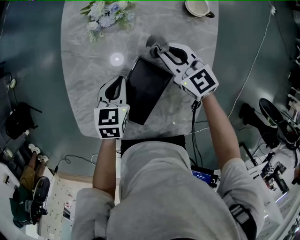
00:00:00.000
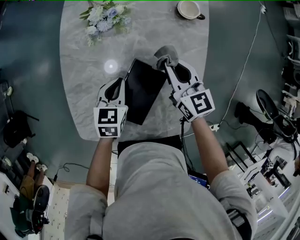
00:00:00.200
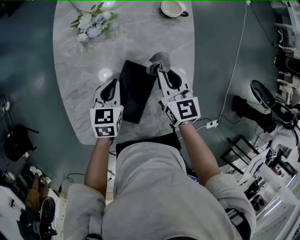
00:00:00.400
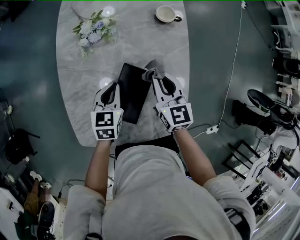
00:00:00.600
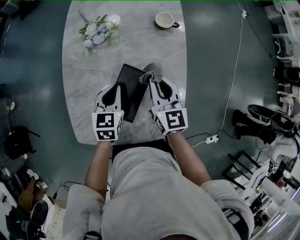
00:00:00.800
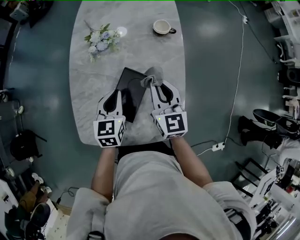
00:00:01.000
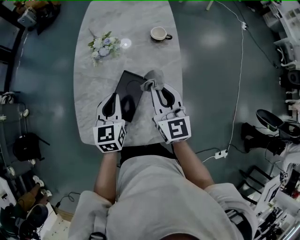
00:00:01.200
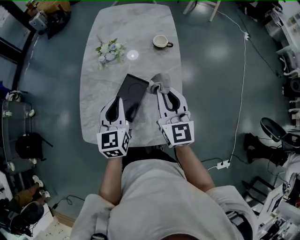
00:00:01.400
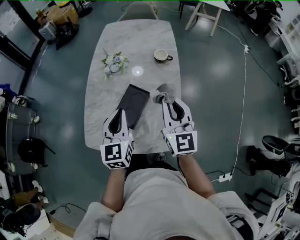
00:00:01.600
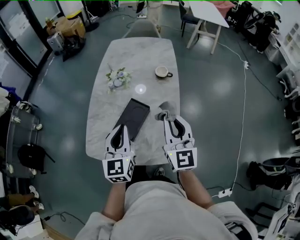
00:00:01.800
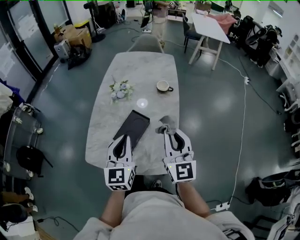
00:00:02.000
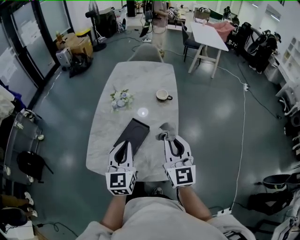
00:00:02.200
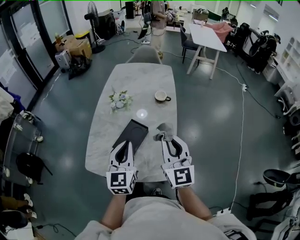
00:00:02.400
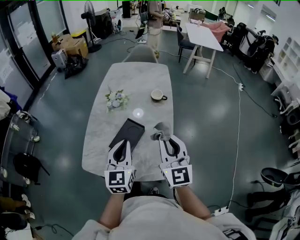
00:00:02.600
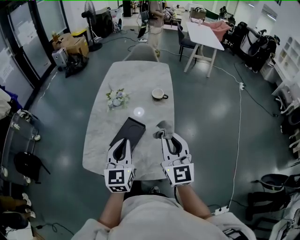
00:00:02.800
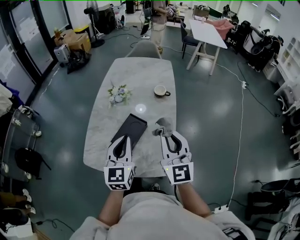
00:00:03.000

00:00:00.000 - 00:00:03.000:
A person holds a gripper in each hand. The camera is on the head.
00:00:00.000 - 00:00:01.600: The right gripper travels upward, backward and to the right by roughly 35 cm, and rotates some 40 degrees; the left gripper moves upward and backward, roughly 30 cm, and angles its fingers upward, by about 30 degrees.
00:00:01.600 - 00:00:03.000: The right gripper shifts roughly 5 cm backward, while the left gripper shifts by approximately 5 cm.

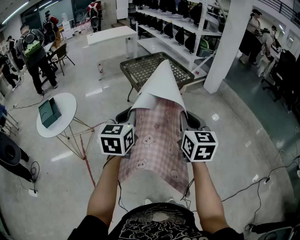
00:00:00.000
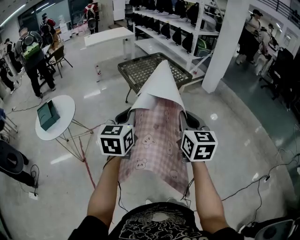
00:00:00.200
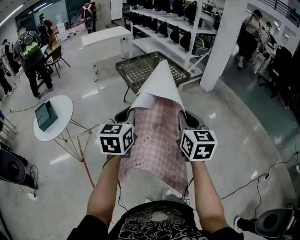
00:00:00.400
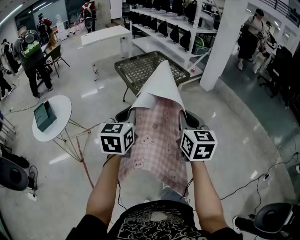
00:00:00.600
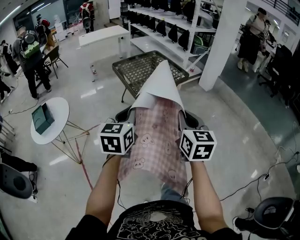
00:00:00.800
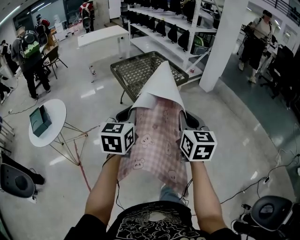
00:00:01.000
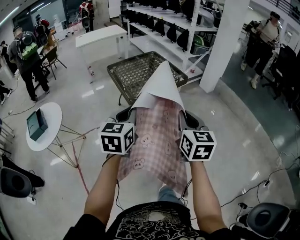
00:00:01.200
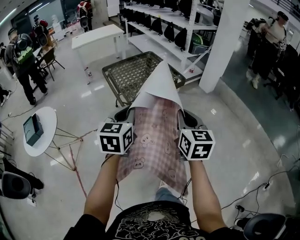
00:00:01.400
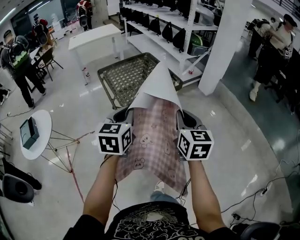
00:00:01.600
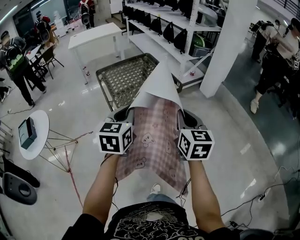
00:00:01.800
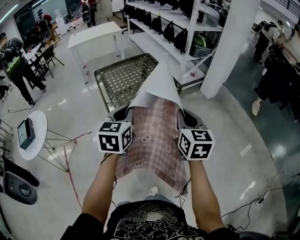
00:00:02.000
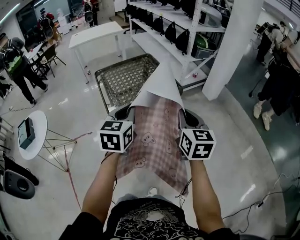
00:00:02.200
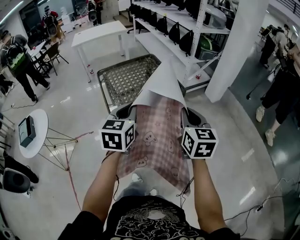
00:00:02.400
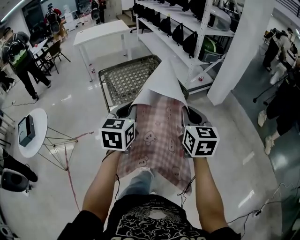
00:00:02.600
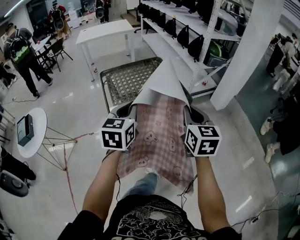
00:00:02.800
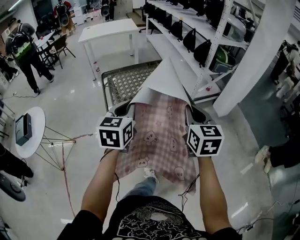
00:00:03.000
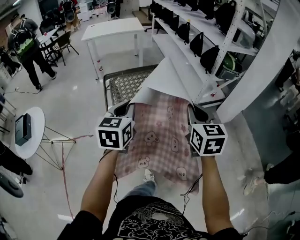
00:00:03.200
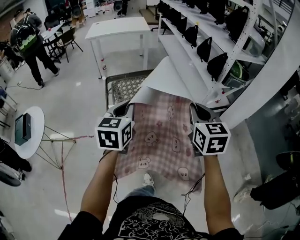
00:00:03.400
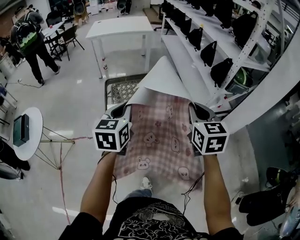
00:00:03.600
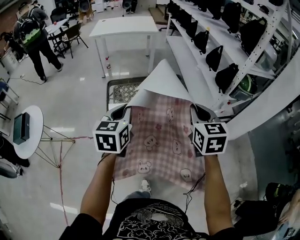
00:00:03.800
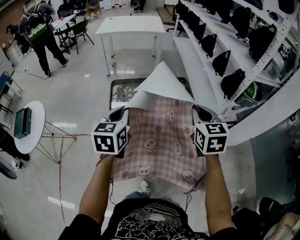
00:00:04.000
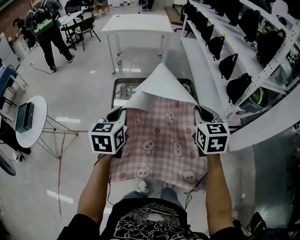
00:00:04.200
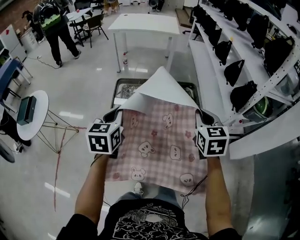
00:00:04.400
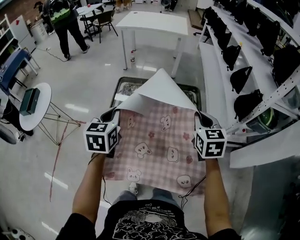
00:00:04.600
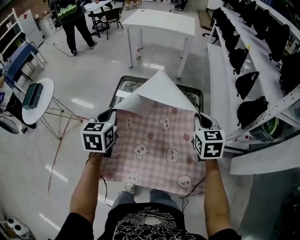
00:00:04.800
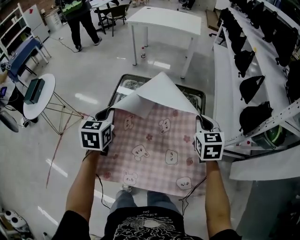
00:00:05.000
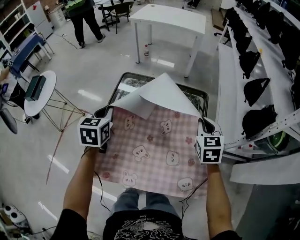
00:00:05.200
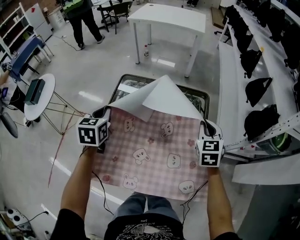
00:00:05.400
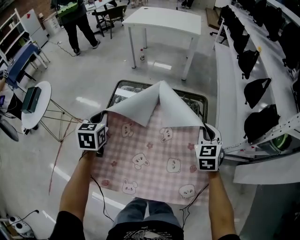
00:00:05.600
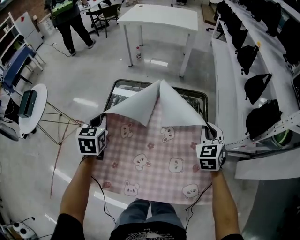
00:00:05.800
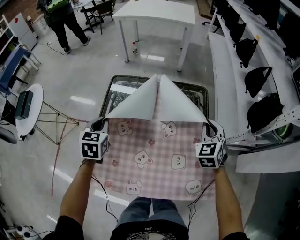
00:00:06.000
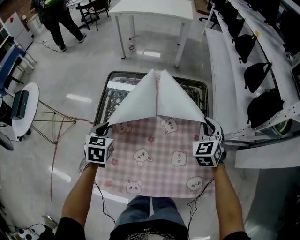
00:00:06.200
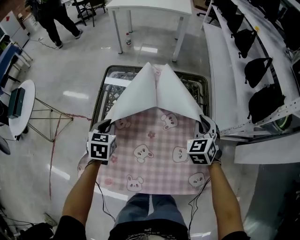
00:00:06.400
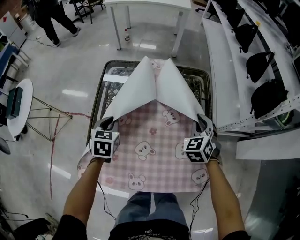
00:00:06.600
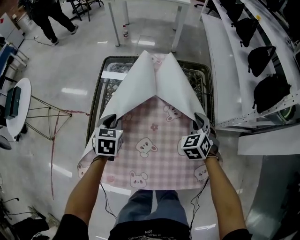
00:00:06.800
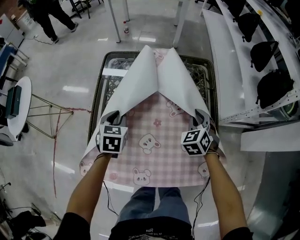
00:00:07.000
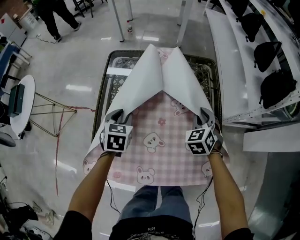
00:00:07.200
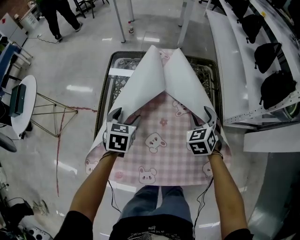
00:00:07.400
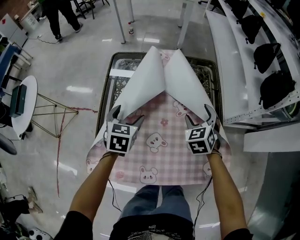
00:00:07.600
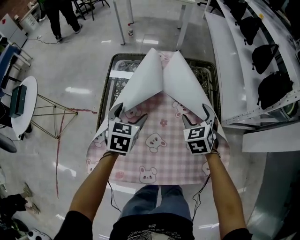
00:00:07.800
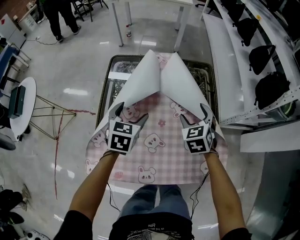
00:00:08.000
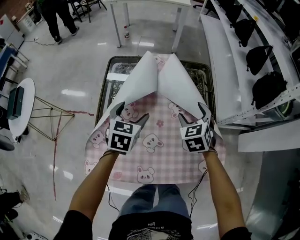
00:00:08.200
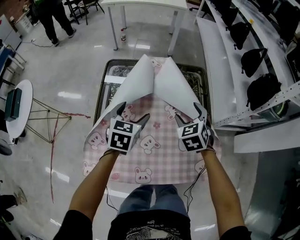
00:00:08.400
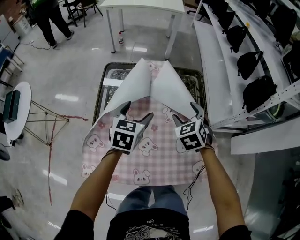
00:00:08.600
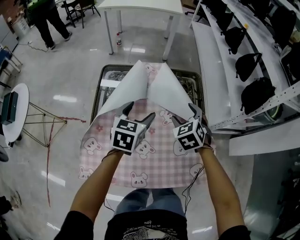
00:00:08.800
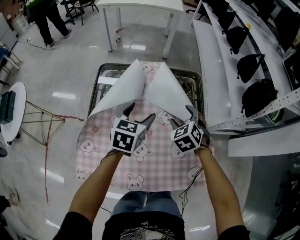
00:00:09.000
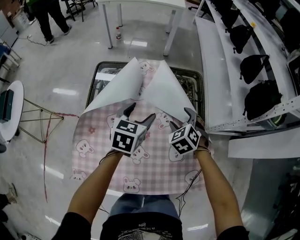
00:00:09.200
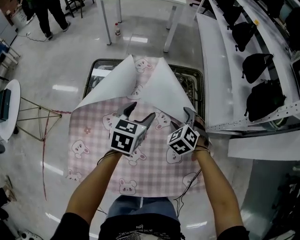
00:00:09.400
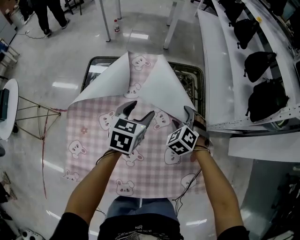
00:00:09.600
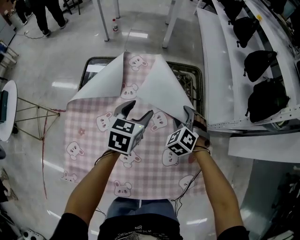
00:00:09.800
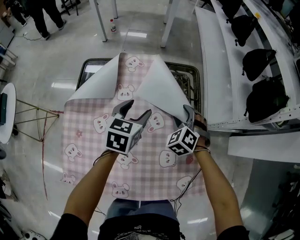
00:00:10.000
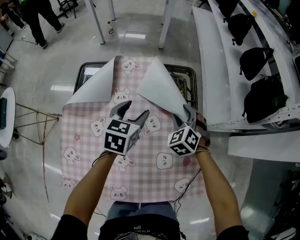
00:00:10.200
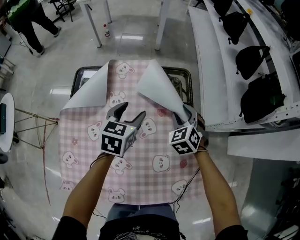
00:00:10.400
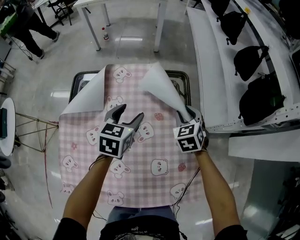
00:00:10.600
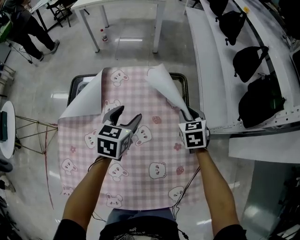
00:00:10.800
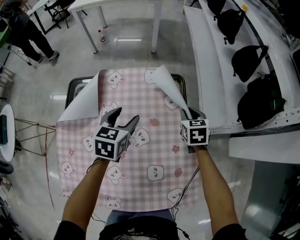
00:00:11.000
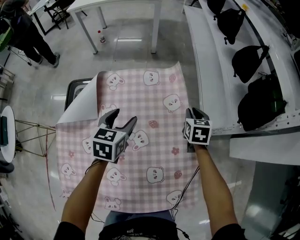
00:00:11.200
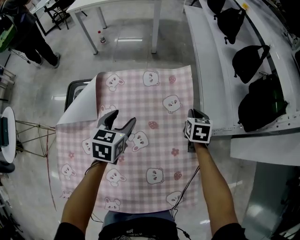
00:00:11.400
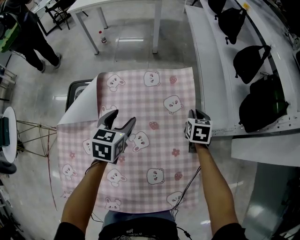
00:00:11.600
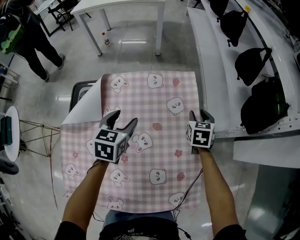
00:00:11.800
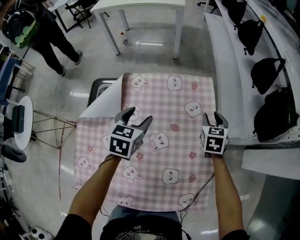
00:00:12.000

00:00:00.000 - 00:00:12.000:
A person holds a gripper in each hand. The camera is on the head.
00:00:00.000 - 00:00:01.600: The grippers both shift forward and to the right by about 25 cm.
00:00:01.600 - 00:00:03.000: Both grippers move forward, about 25 cm.
00:00:03.000 - 00:00:04.400: The right gripper travels forward by some 30 cm, and turns by about 20 degrees, while the left gripper shifts approximately 20 cm forward and to the left, and swivels about 30 degrees.
00:00:04.400 - 00:00:06.000: The right gripper goes approximately 20 cm downward, forward and to the right, and swivels approximately 30 degrees, while the left gripper heads downward and forward, covering about 15 cm.
00:00:06.000 - 00:00:07.600: The left gripper travels downward and to the right by approximately 10 cm, and opens up, while the right gripper moves downward, to the left and backward, about 15 cm, and opens up.
00:00:07.600 - 00:00:09.000: The left gripper shifts roughly 15 cm to the right, upward and forward.
00:00:09.000 - 00:00:10.400: The grippers both shift forward and to the right by approximately 10 cm. The right gripper closes.
00:00:10.400 - 00:00:12.000: The right gripper goes some 10 cm to the right and forward, changes its angle by roughly 40 degrees, and closes and opens again.

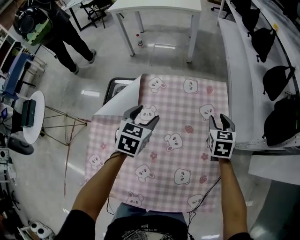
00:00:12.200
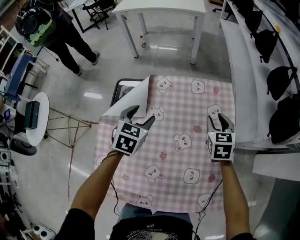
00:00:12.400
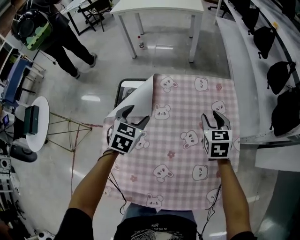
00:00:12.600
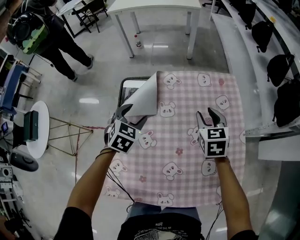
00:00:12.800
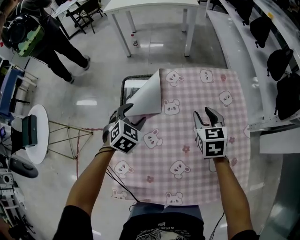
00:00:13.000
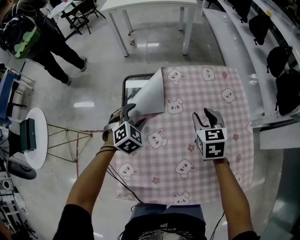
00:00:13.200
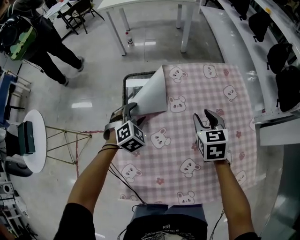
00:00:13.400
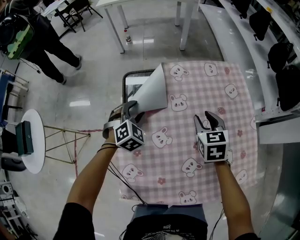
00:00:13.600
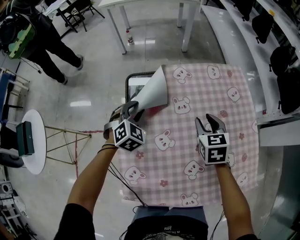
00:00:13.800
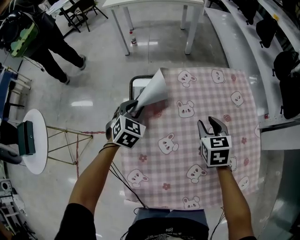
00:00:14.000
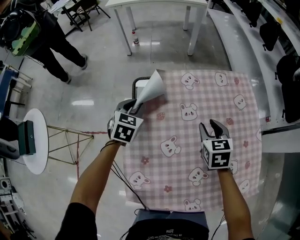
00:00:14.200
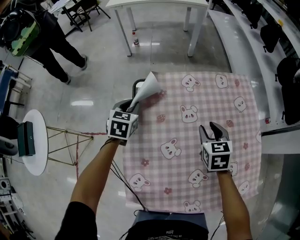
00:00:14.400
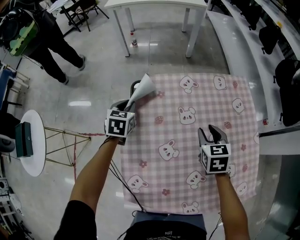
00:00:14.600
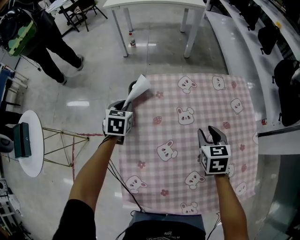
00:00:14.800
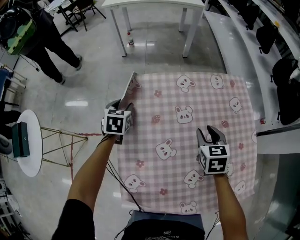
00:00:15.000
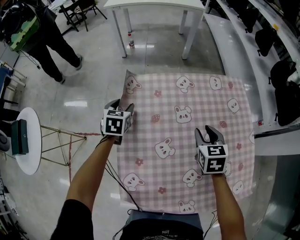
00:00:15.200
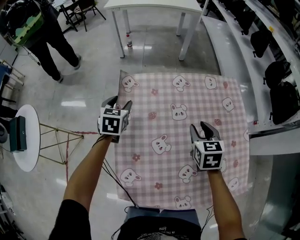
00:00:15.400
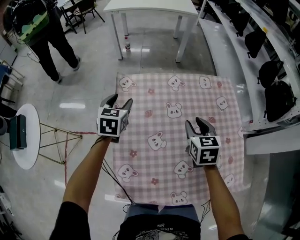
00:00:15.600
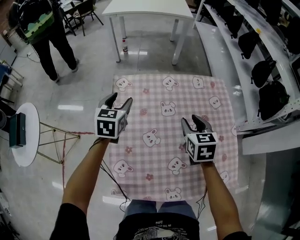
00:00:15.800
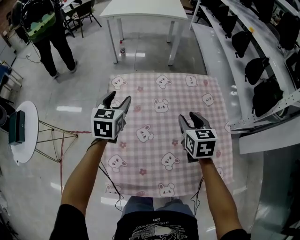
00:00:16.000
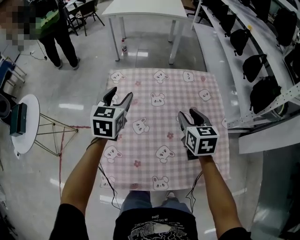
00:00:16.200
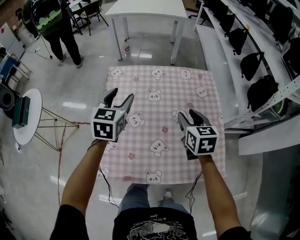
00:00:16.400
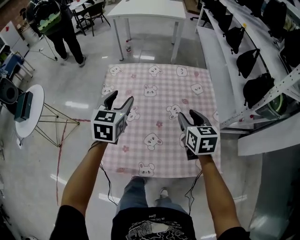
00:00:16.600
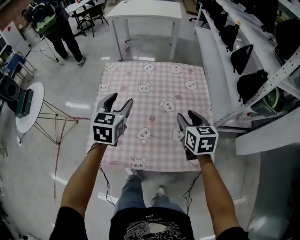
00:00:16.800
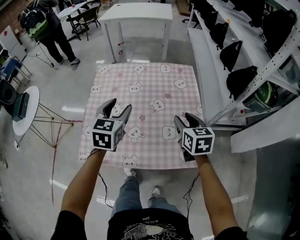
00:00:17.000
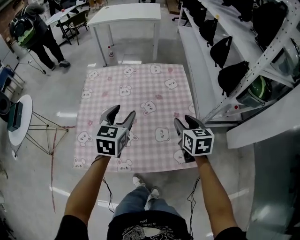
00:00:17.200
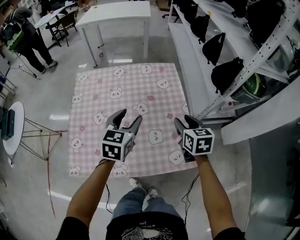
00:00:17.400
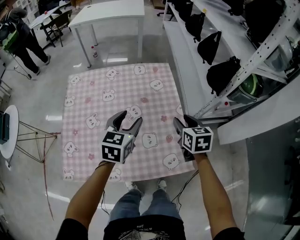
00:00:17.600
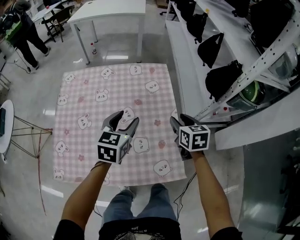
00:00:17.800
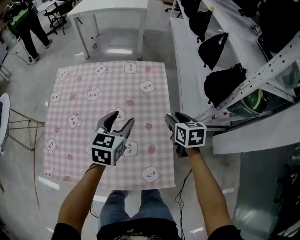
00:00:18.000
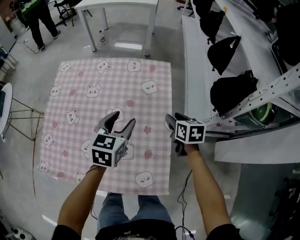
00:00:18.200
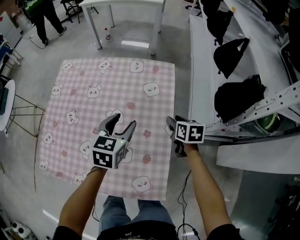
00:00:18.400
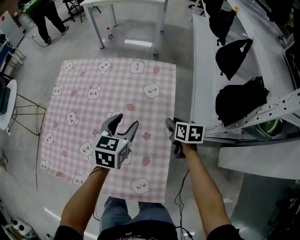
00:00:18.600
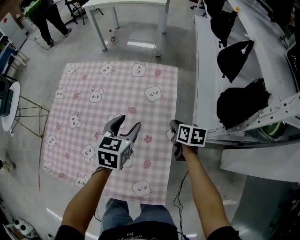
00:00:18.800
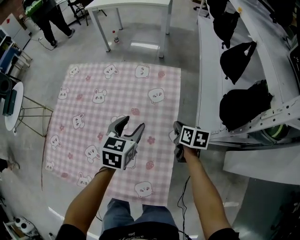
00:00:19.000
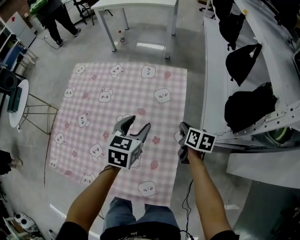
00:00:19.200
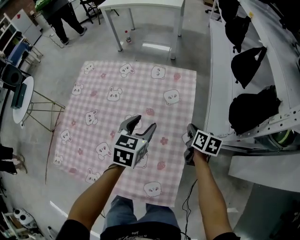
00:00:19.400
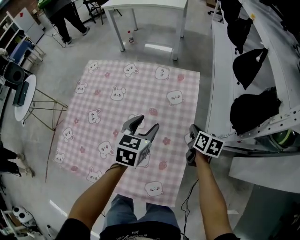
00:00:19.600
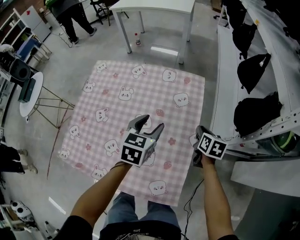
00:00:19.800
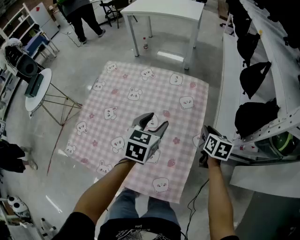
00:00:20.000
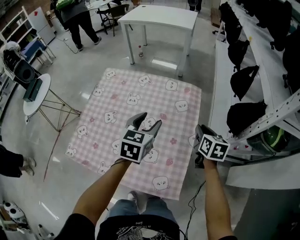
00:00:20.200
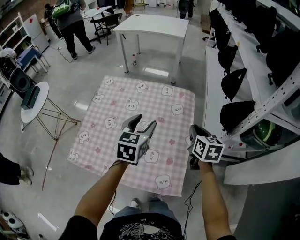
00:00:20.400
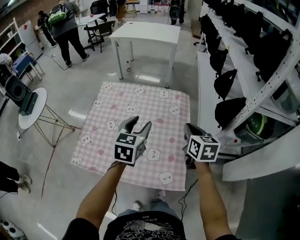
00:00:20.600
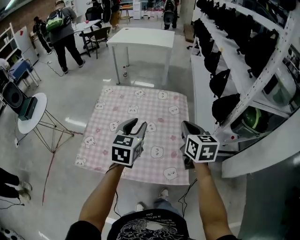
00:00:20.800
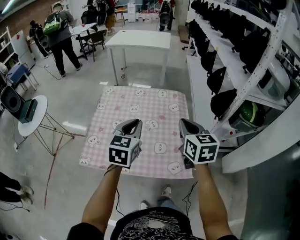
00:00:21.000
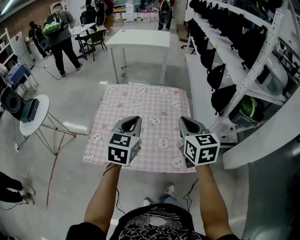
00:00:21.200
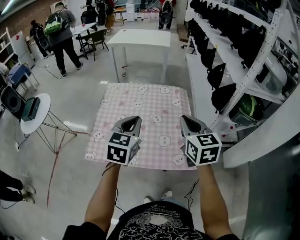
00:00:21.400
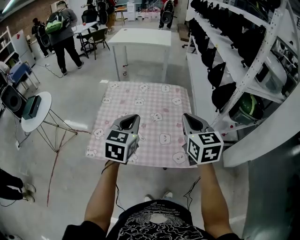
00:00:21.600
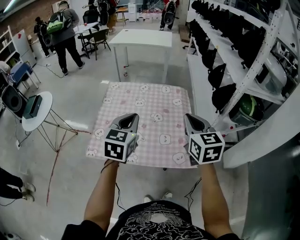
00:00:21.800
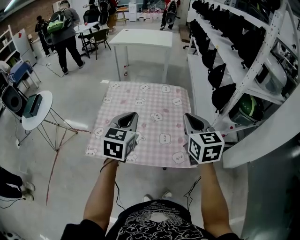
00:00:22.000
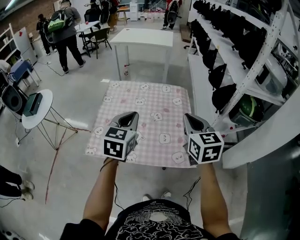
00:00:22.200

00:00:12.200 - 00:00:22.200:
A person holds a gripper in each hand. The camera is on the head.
00:00:12.200 - 00:00:13.600: The right gripper goes roughly 25 cm to the left and backward. The left gripper moves to the left and downward, some 25 cm, and rolls clockwise, seen from behind, by approximately 40 degrees.
00:00:13.600 - 00:00:15.000: The left gripper heads to the left and forward, covering roughly 10 cm, and rolls counterclockwise, seen from behind, by approximately 50 degrees.
00:00:15.000 - 00:00:16.400: The left gripper travels upward, backward and to the right by approximately 30 cm, and swivels roughly 20 degrees. The right gripper travels upward, backward and to the right by roughly 15 cm.
00:00:16.400 - 00:00:18.000: Both grippers travel together to the right, approximately 30 cm.
00:00:18.000 - 00:00:19.400: The left gripper shifts by approximately 10 cm; the right gripper moves downward and forward, about 10 cm, changes its angle by approximately 20 degrees, and closes up.
00:00:19.400 - 00:00:20.800: The grippers both shift upward, backward and to the left by about 35 cm. The right gripper changes its angle by approximately 30 degrees.
00:00:20.800 - 00:00:22.200: The left gripper shifts approximately 15 cm backward, to the left and upward; the right gripper heads backward, upward and to the left, covering about 15 cm.
